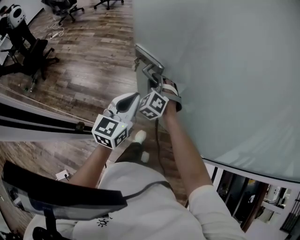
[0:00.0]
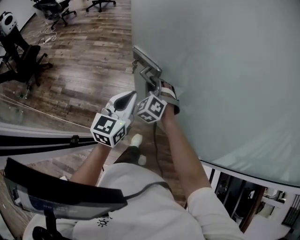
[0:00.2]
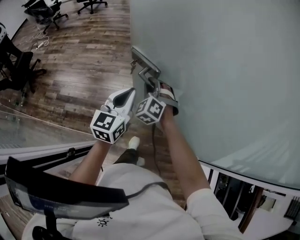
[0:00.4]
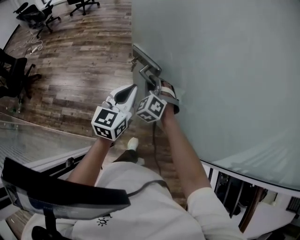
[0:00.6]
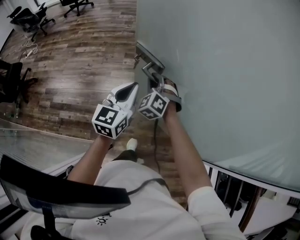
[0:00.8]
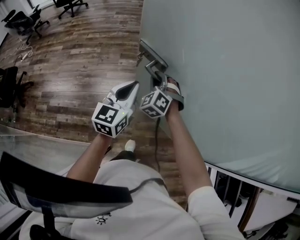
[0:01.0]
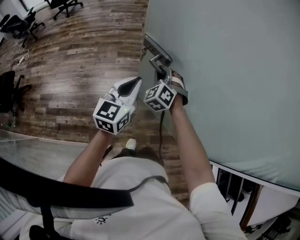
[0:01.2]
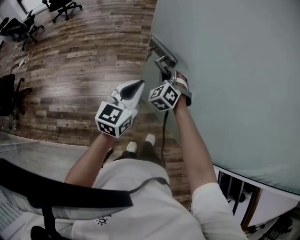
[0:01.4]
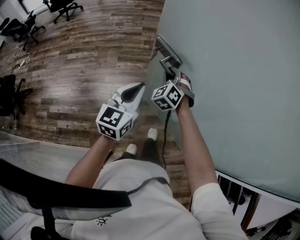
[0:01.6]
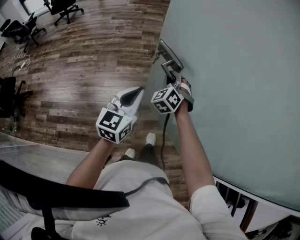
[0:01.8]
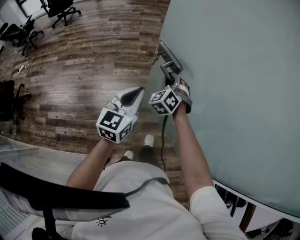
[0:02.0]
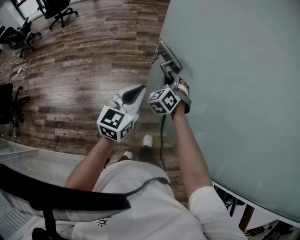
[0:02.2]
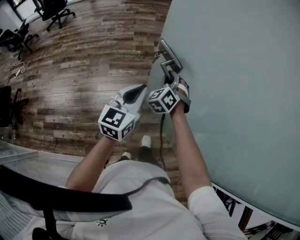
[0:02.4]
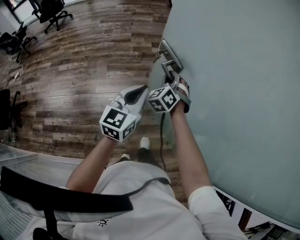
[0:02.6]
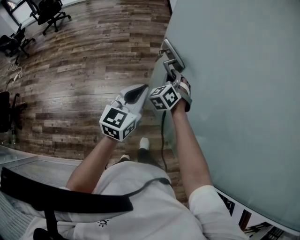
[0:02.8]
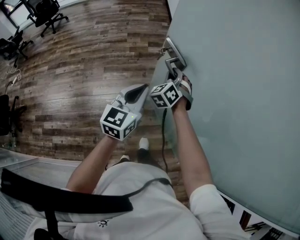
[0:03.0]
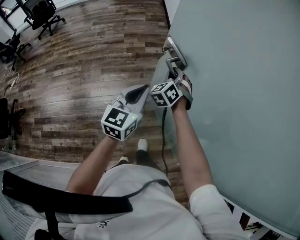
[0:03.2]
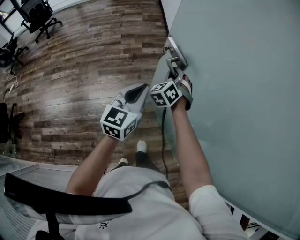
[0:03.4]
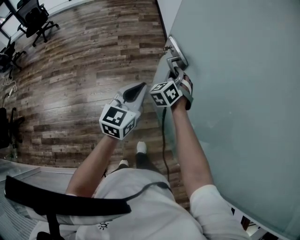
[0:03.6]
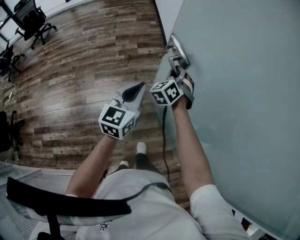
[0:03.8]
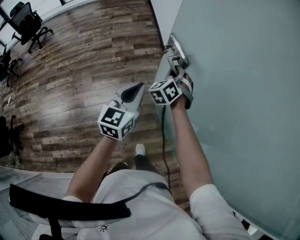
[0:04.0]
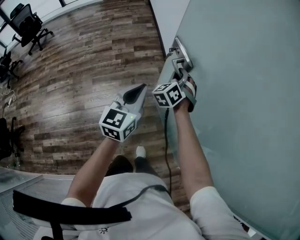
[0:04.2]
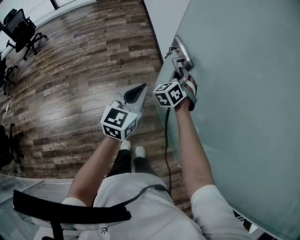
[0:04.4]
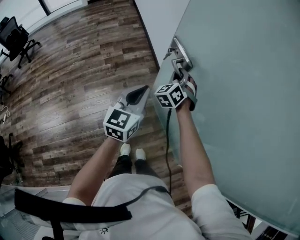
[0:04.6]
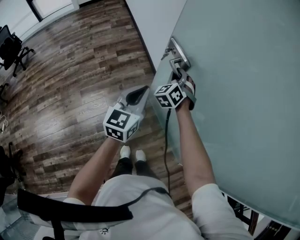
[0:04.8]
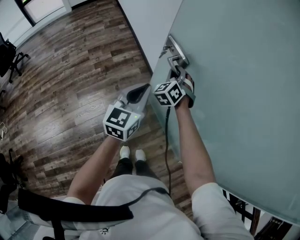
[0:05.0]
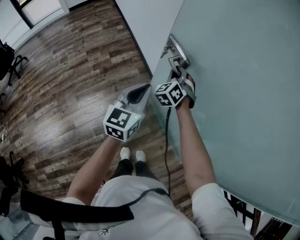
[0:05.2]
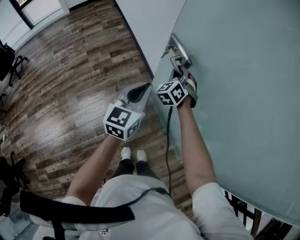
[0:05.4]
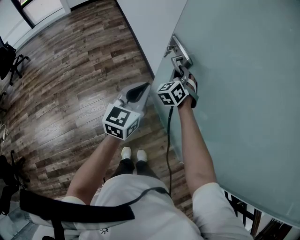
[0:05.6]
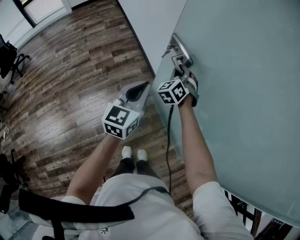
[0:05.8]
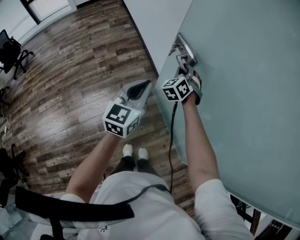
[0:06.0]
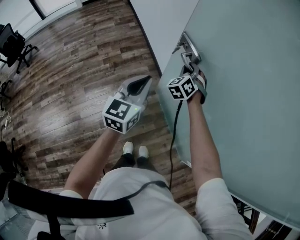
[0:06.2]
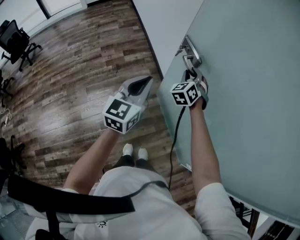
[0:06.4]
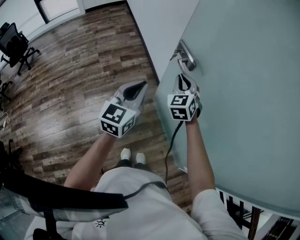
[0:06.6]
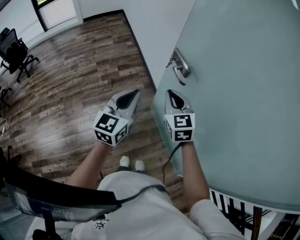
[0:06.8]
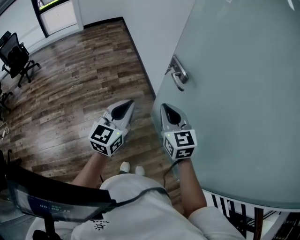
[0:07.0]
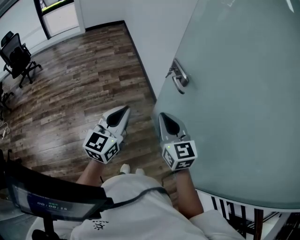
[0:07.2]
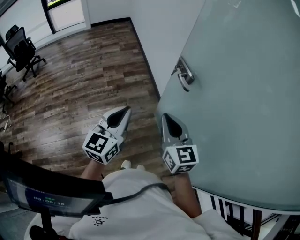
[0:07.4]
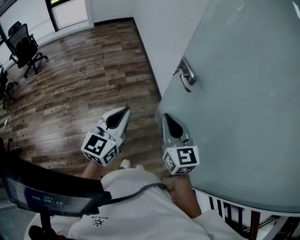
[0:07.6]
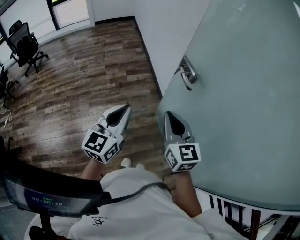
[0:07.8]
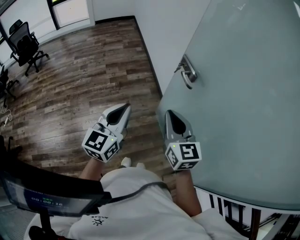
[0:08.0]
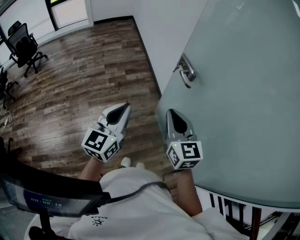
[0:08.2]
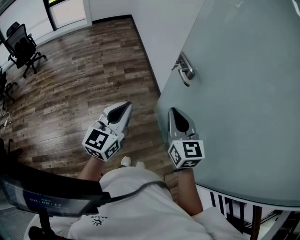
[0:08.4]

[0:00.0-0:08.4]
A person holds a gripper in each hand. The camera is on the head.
0:00.0 to 0:01.4: The left gripper moves forward, some 30 cm. Meanwhile the right gripper heads forward and to the right, covering some 30 cm.
0:01.4 to 0:02.8: Both grippers travel together forward and to the right, roughly 25 cm.
0:02.8 to 0:04.2: The grippers both shift forward and to the right by some 15 cm.
0:04.2 to 0:05.6: The left gripper travels forward by about 10 cm. Meanwhile the right gripper goes about 10 cm forward and to the right.
0:05.6 to 0:07.0: The right gripper moves backward and upward, about 30 cm, and rotates about 50 degrees. Meanwhile the left gripper goes roughly 15 cm backward and upward.
0:07.0 to 0:08.4: Both grippers move backward, approximately 5 cm.

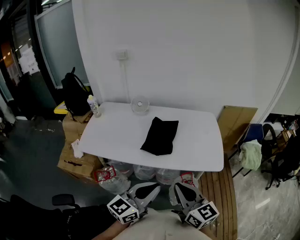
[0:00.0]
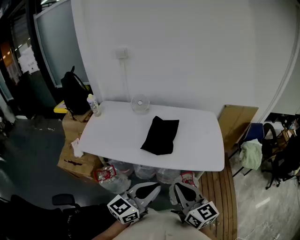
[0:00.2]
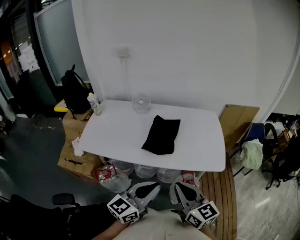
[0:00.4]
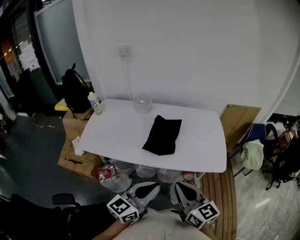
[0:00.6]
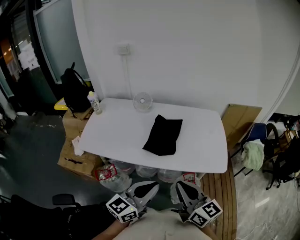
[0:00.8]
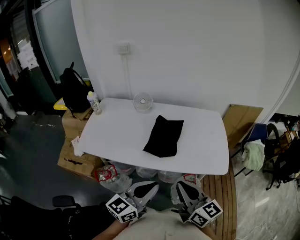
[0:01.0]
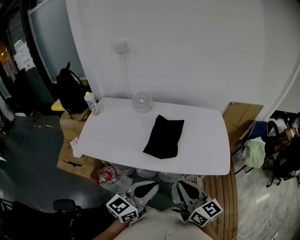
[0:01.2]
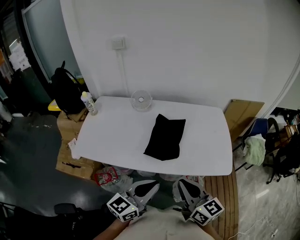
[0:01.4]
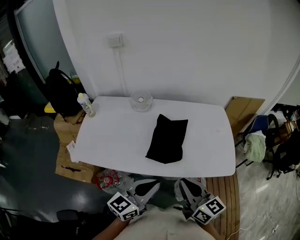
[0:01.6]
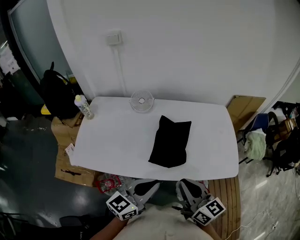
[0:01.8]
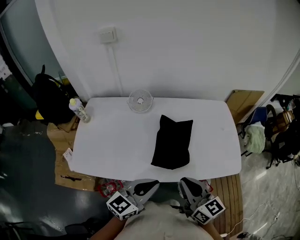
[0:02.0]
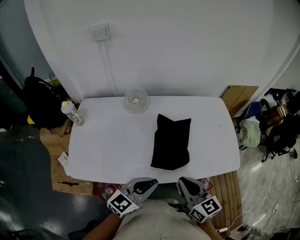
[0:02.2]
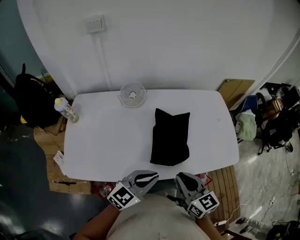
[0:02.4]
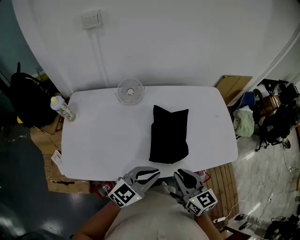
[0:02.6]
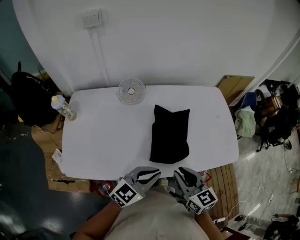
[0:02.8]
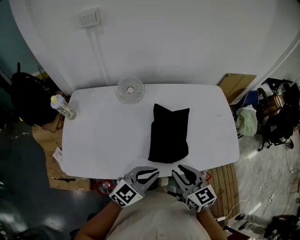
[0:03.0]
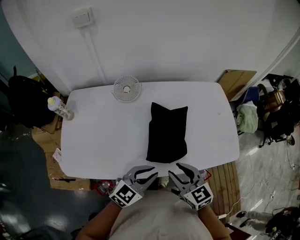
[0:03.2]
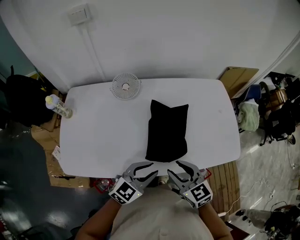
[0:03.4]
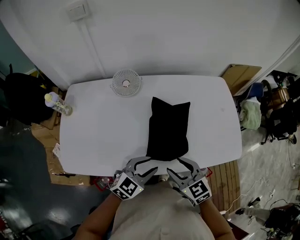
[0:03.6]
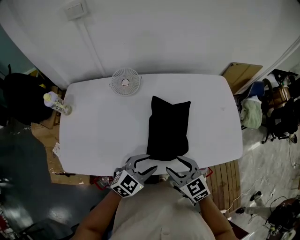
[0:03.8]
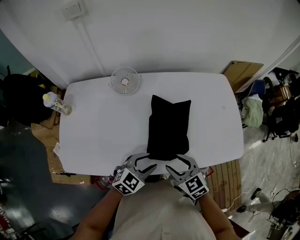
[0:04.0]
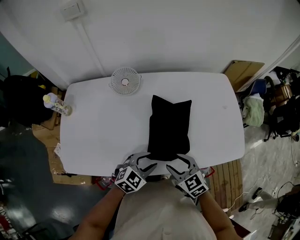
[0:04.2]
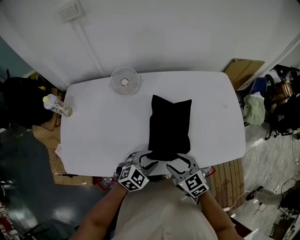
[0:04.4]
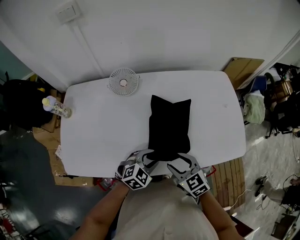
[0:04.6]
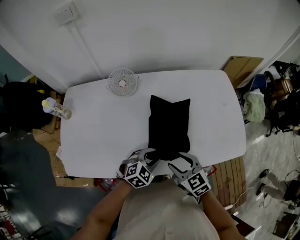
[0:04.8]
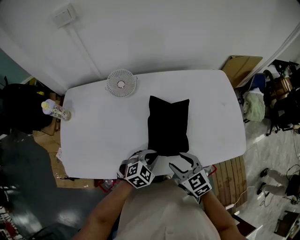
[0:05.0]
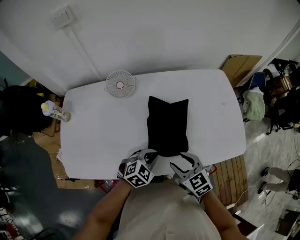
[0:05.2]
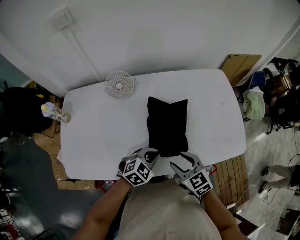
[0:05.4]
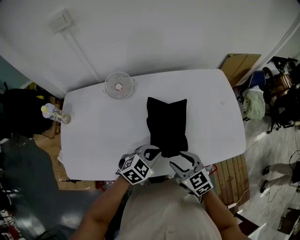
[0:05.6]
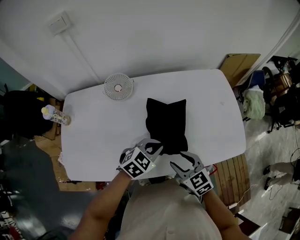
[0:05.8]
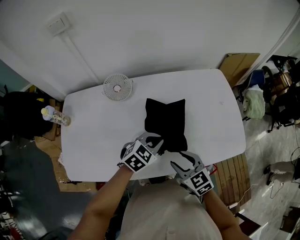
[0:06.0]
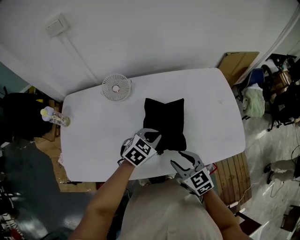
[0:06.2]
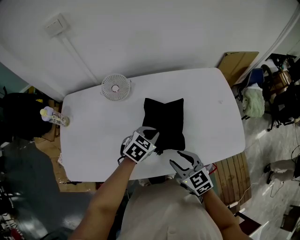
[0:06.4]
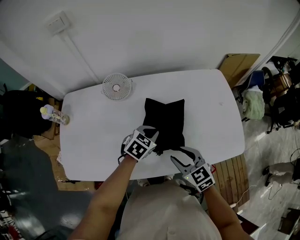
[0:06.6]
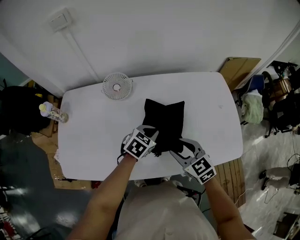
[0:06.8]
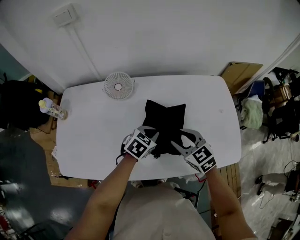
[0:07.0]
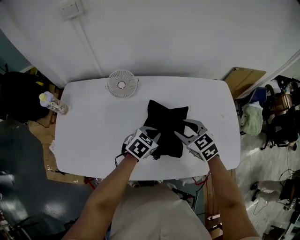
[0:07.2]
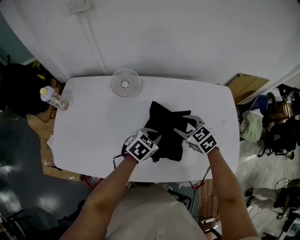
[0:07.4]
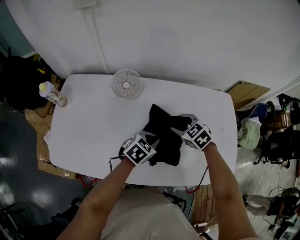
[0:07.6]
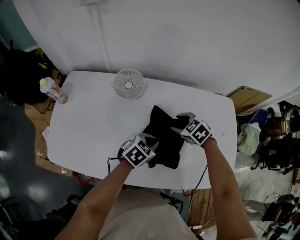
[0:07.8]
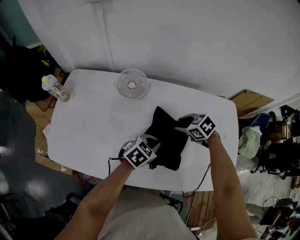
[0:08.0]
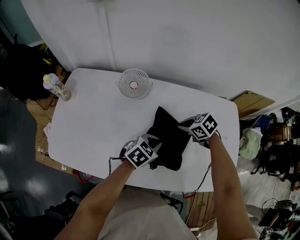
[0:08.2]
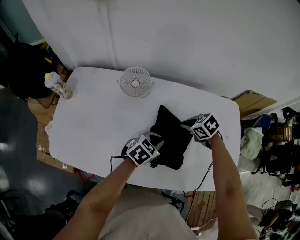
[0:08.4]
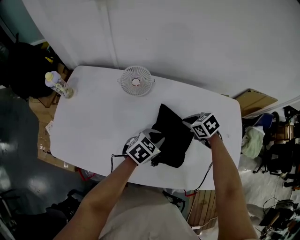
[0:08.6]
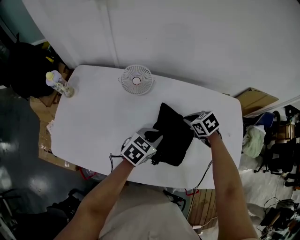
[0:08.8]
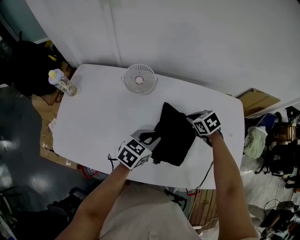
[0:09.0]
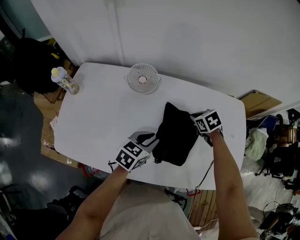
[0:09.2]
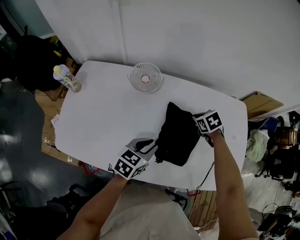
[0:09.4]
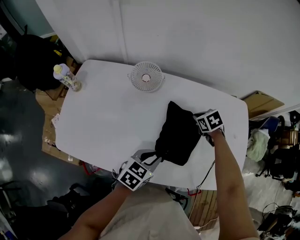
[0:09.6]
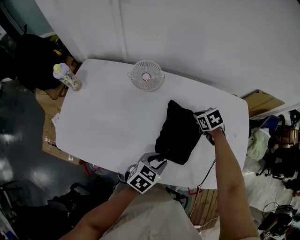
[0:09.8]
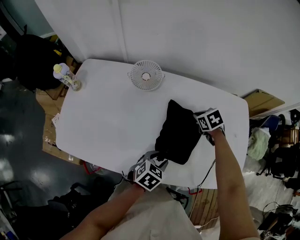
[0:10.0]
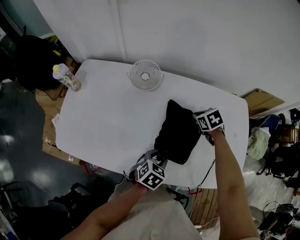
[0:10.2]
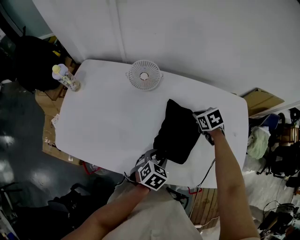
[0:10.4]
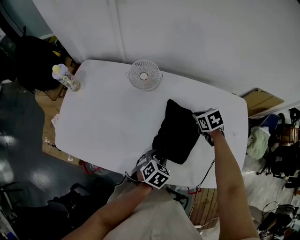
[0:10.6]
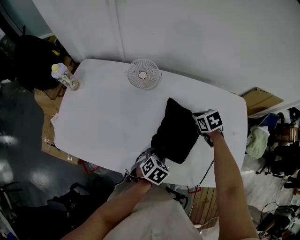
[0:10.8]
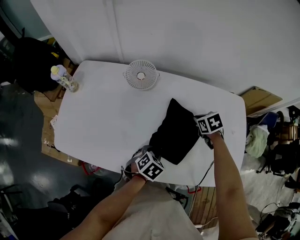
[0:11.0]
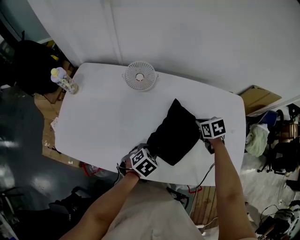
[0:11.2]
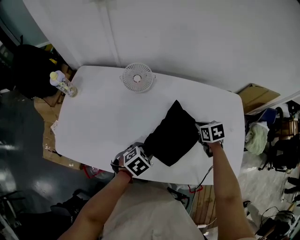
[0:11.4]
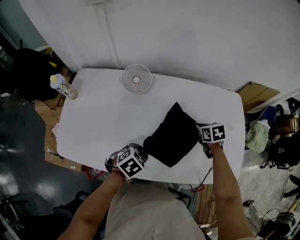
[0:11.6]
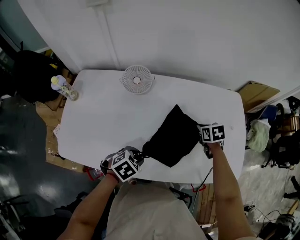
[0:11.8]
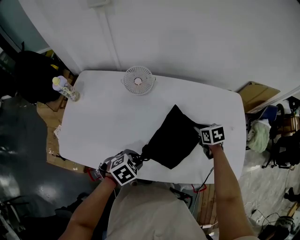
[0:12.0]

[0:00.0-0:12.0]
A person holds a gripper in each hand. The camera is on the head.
0:00.0 to 0:01.6: Both grippers move forward and to the left, approximately 15 cm.
0:01.6 to 0:03.0: The left gripper goes approximately 15 cm downward, forward and to the left, and rotates approximately 30 degrees. The right gripper heads to the left, downward and forward, covering some 15 cm, swivels some 20 degrees, and opens its fingers.
0:03.0 to 0:04.4: The left gripper is displaced downward and forward by approximately 15 cm, changes its angle by about 20 degrees, and opens, while the right gripper is displaced downward by roughly 10 cm, rotates some 20 degrees, and opens its fingers.
0:04.4 to 0:06.0: The left gripper is displaced forward and upward by about 10 cm, and closes its fingers.
0:06.0 to 0:07.6: The left gripper travels forward and downward by approximately 10 cm, and turns by approximately 20 degrees, while the right gripper moves forward, roughly 20 cm, and rotates some 30 degrees.
0:07.6 to 0:09.0: The right gripper moves roughly 5 cm, and closes up. The left gripper moves approximately 5 cm.
0:09.0 to 0:10.4: The left gripper heads backward and downward, covering about 10 cm, rotates about 20 degrees, and opens its fingers.
0:10.4 to 0:12.0: The right gripper shifts approximately 10 cm backward and to the right, while the left gripper goes roughly 10 cm to the left and backward, and turns by some 30 degrees.

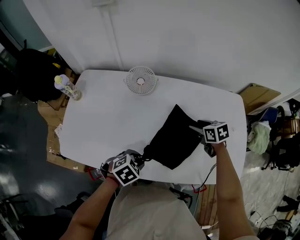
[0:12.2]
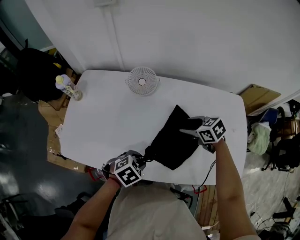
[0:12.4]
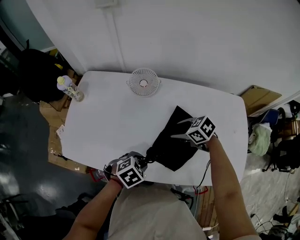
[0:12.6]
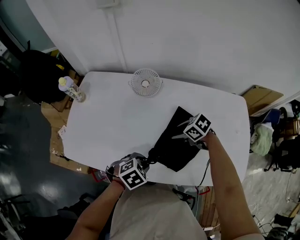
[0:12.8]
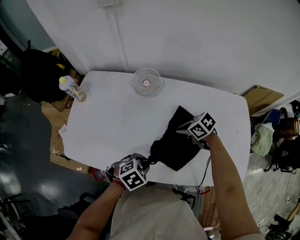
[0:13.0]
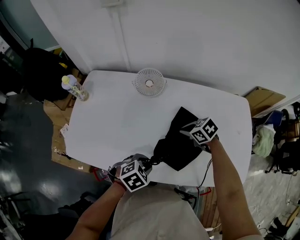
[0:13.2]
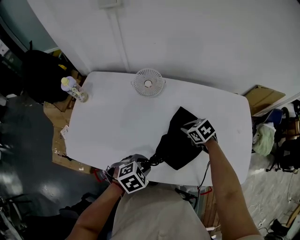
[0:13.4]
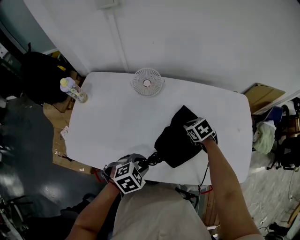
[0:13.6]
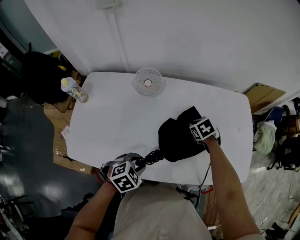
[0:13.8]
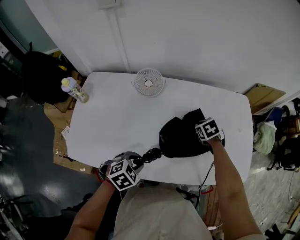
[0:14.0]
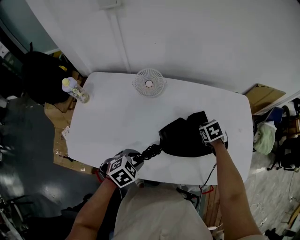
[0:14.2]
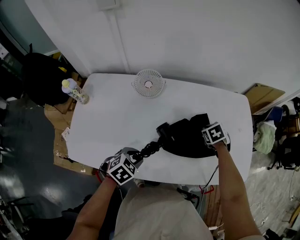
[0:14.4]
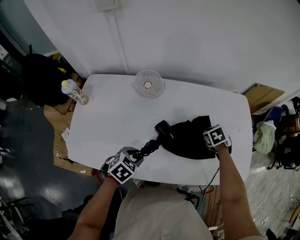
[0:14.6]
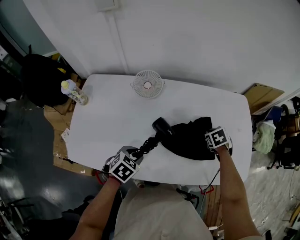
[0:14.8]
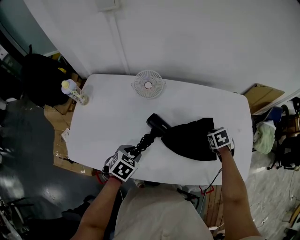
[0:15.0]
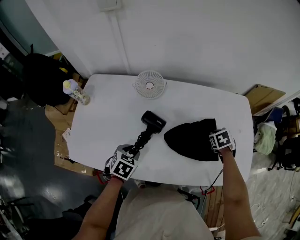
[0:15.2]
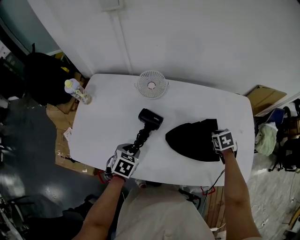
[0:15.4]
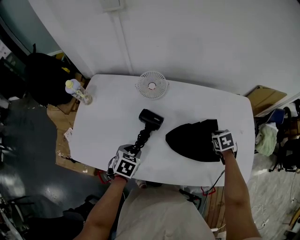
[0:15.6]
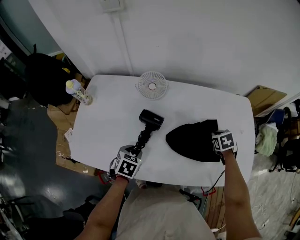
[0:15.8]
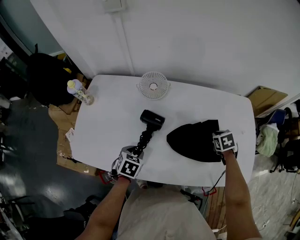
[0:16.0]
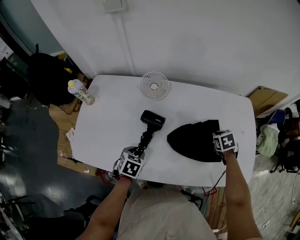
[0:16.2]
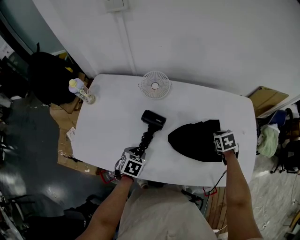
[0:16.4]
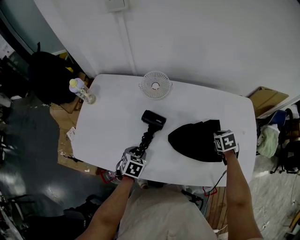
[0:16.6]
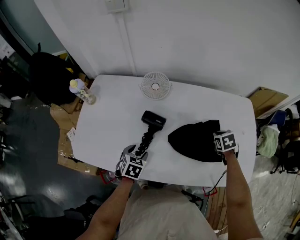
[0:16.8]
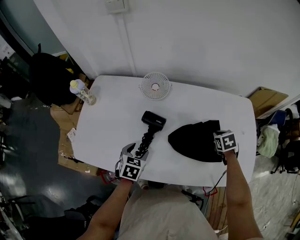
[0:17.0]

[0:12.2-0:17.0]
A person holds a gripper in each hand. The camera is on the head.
0:12.2 to 0:13.8: The right gripper changes its angle by roughly 20 degrees, and closes its fingers.
0:13.8 to 0:15.4: The right gripper moves to the right, about 10 cm. The left gripper moves to the left, roughly 10 cm, and changes its angle by about 40 degrees.
0:15.4 to 0:17.0: The left gripper opens up.
